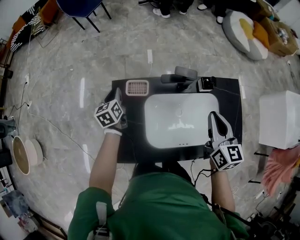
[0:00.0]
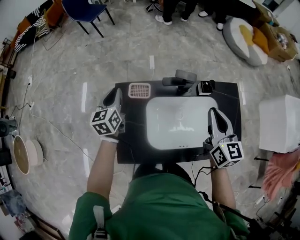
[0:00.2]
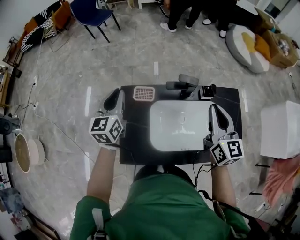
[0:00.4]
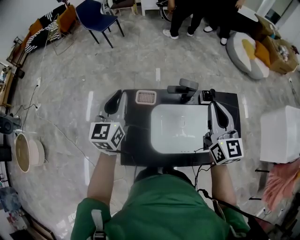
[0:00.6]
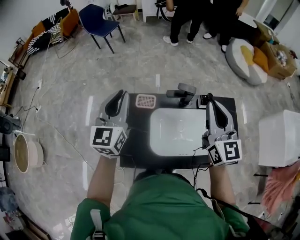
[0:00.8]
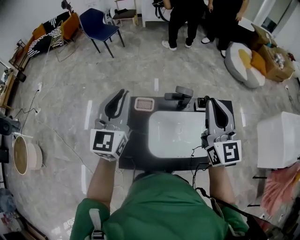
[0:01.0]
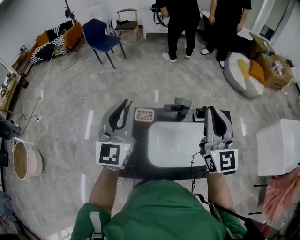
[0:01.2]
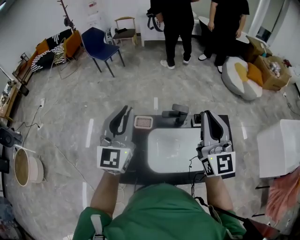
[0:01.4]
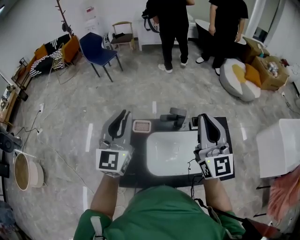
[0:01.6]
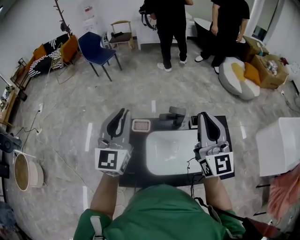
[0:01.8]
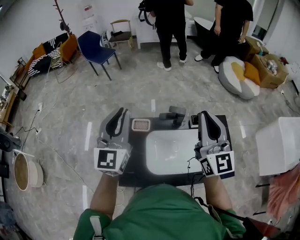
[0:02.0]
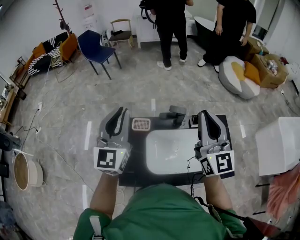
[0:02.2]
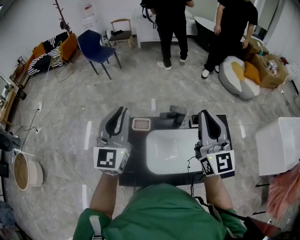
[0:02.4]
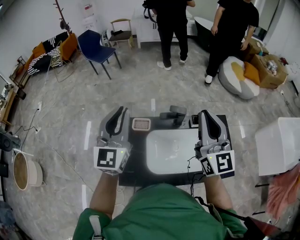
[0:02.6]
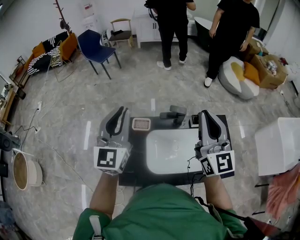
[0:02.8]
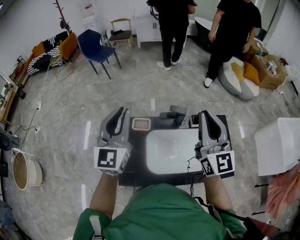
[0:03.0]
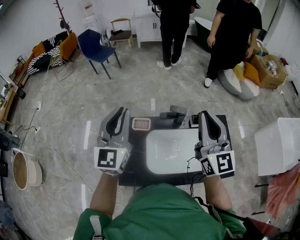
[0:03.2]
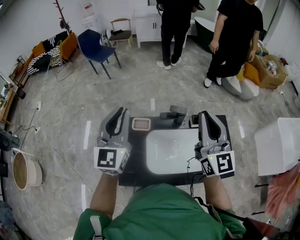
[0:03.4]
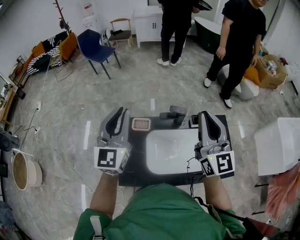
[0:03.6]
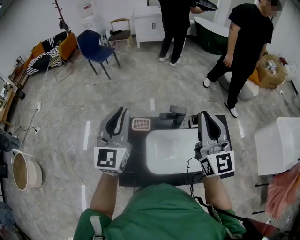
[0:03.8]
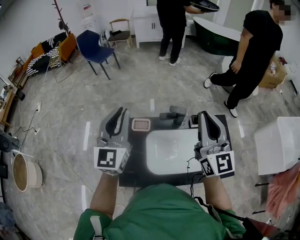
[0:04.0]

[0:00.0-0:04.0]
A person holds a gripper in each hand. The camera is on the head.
0:00.0 to 0:01.4: The left gripper heads upward, covering approximately 40 cm, and points its fingers approximately 40 degrees further upward; the right gripper heads upward, covering some 25 cm, and swivels some 40 degrees.
0:01.4 to 0:02.6: The two grippers keep their place.
0:02.6 to 0:04.0: Neither gripper changes place.

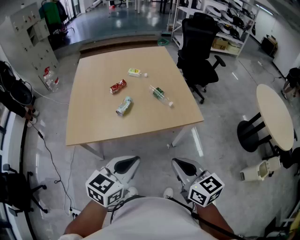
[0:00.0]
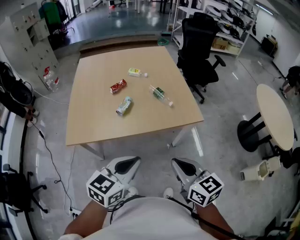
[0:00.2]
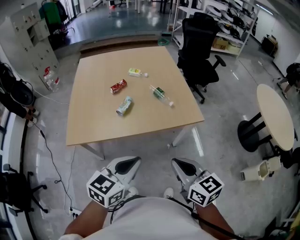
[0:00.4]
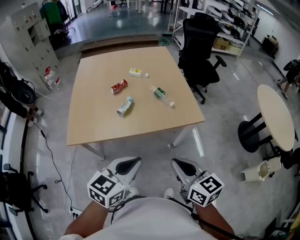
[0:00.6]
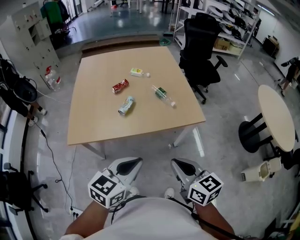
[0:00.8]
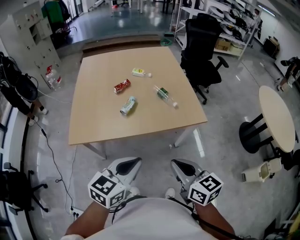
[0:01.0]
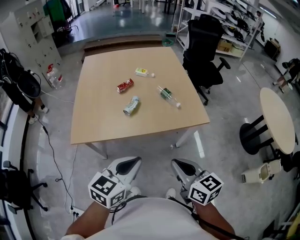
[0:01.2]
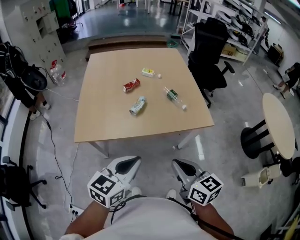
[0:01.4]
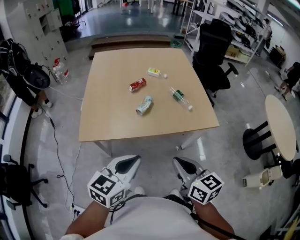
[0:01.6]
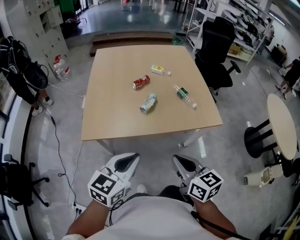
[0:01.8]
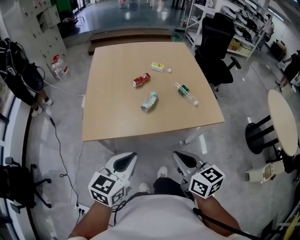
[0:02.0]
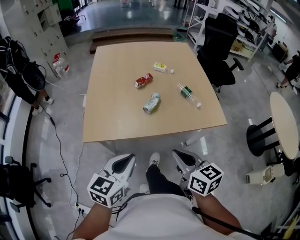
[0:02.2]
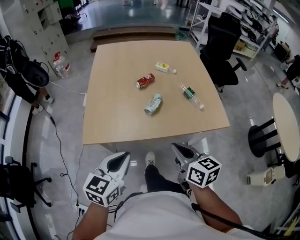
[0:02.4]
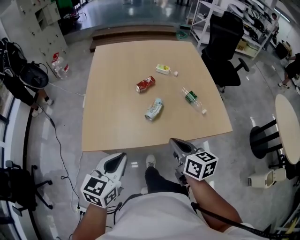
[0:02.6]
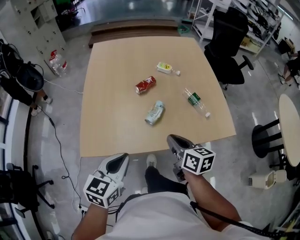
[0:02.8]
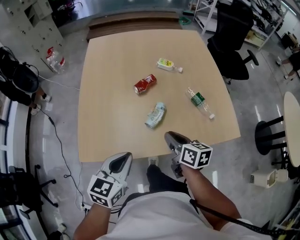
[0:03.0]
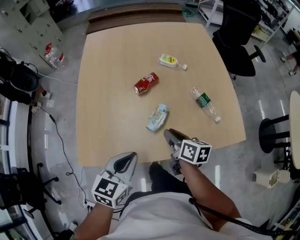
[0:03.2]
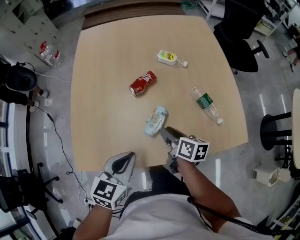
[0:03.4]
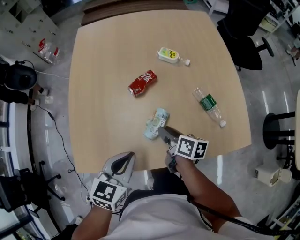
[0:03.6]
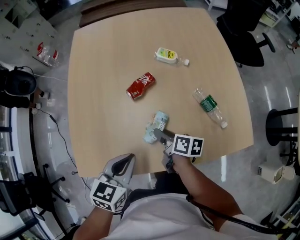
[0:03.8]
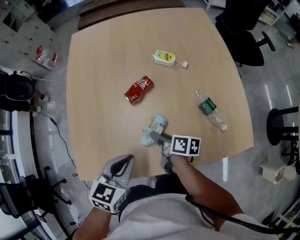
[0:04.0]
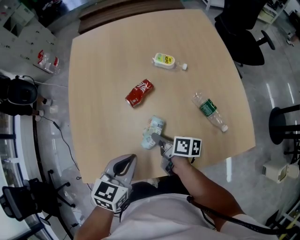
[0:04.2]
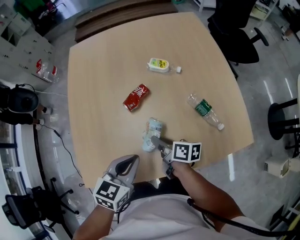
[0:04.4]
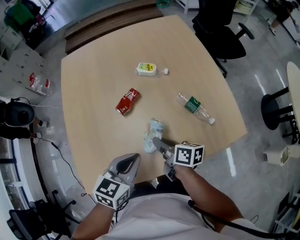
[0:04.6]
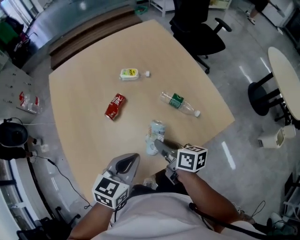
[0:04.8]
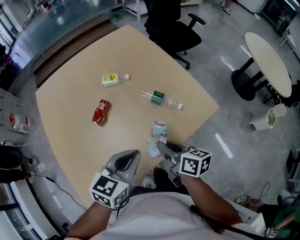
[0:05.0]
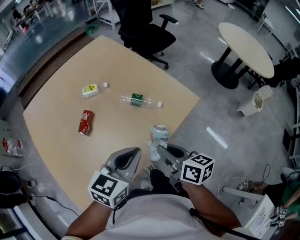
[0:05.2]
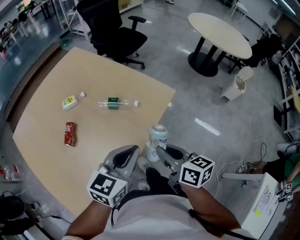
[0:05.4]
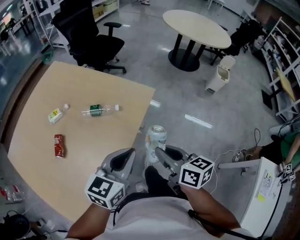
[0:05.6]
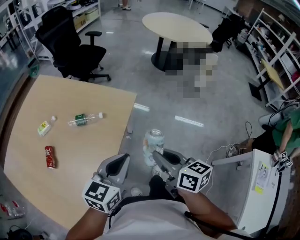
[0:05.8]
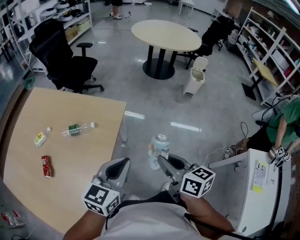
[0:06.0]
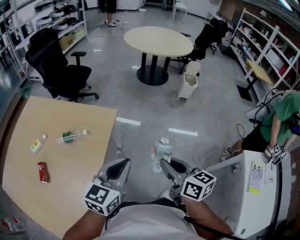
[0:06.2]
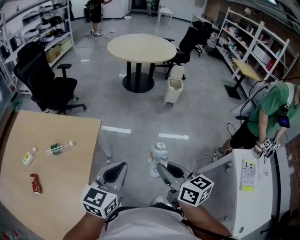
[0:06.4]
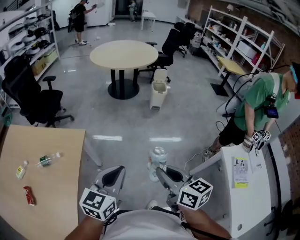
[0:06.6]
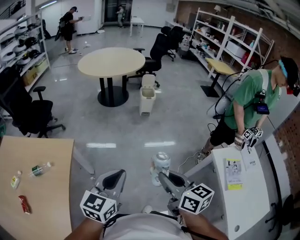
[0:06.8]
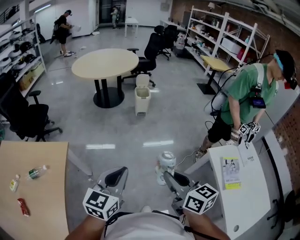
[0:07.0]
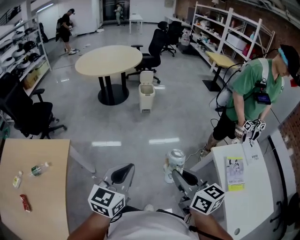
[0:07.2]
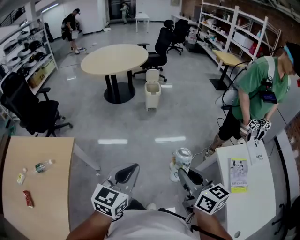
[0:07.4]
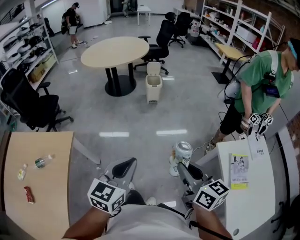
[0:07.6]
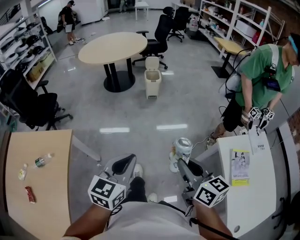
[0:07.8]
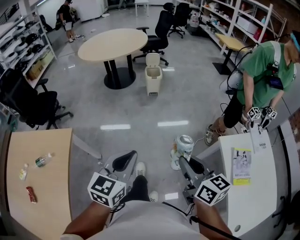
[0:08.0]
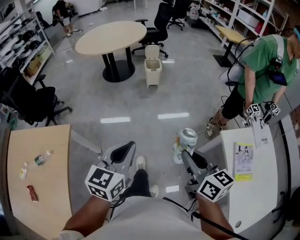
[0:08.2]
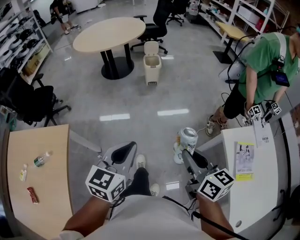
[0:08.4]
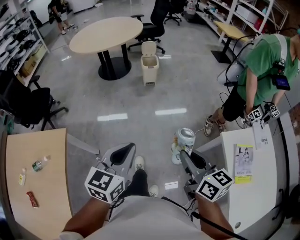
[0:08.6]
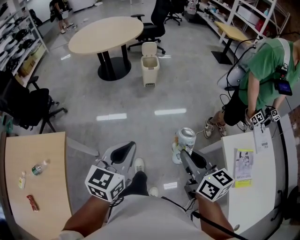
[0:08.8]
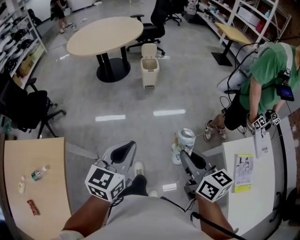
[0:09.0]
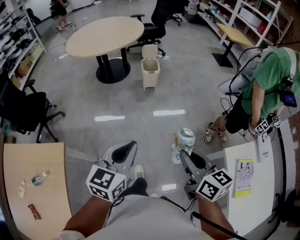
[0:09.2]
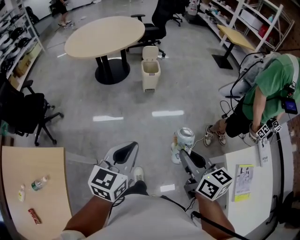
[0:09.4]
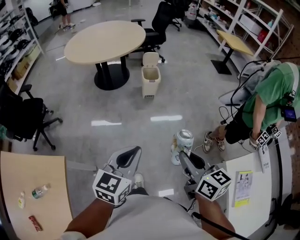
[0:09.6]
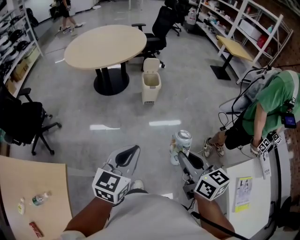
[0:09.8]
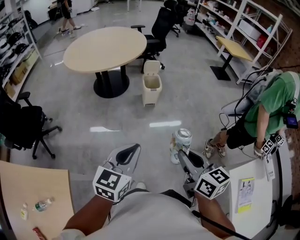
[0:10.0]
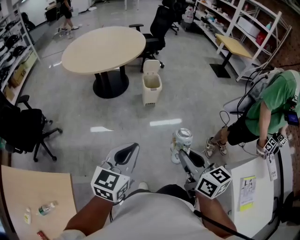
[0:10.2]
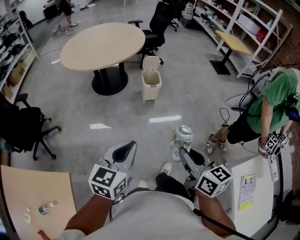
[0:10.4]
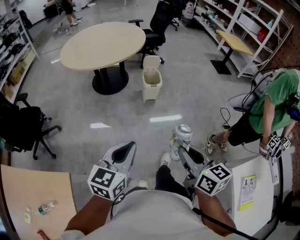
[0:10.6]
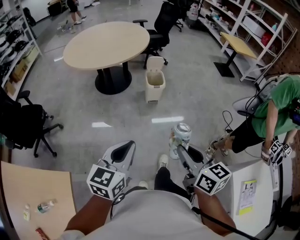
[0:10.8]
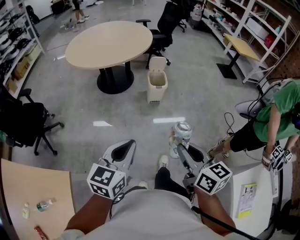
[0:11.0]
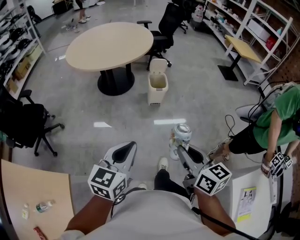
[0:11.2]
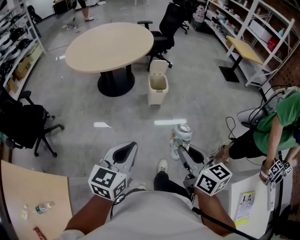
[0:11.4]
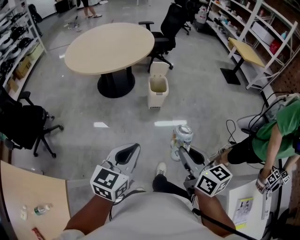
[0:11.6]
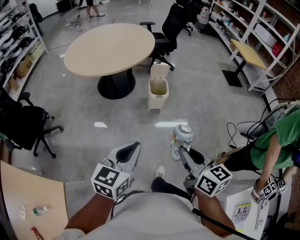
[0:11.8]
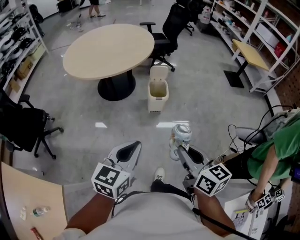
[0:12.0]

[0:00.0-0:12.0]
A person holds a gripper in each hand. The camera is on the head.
0:00.0 to 0:01.6: Both grippers move to the left, about 10 cm.
0:01.6 to 0:03.0: The left gripper is displaced forward, downward and to the left by roughly 20 cm. The right gripper travels forward and downward by approximately 30 cm, and turns by some 20 degrees.
0:03.0 to 0:04.4: The right gripper moves forward and downward, some 10 cm, changes its angle by about 30 degrees, and opens and closes again. The left gripper goes approximately 10 cm forward.
0:04.4 to 0:06.0: The right gripper ends up approximately 50 cm from where it was, and turns by approximately 70 degrees. The left gripper changes place by roughly 30 cm, and rotates about 70 degrees.
0:06.0 to 0:07.6: The two grippers go roughly 35 cm to the right. The right gripper rotates approximately 30 degrees.
0:07.6 to 0:09.0: Both grippers move forward, some 10 cm.
0:09.0 to 0:10.4: Both grippers travel together forward and to the left, roughly 20 cm.
0:10.4 to 0:12.0: The left gripper travels forward and to the right by some 15 cm, while the right gripper moves forward, roughly 15 cm.

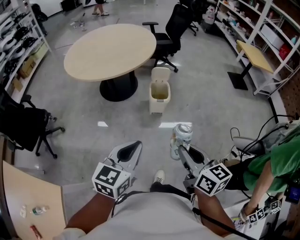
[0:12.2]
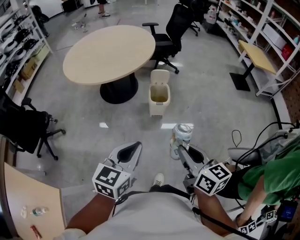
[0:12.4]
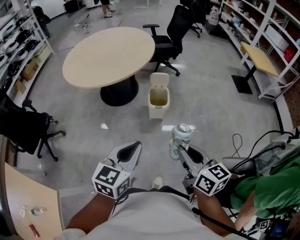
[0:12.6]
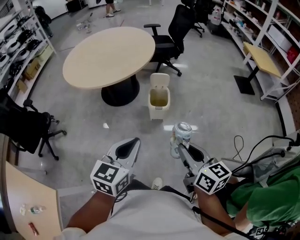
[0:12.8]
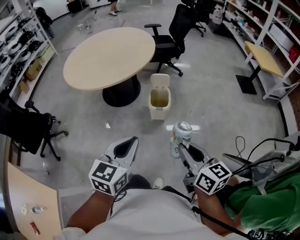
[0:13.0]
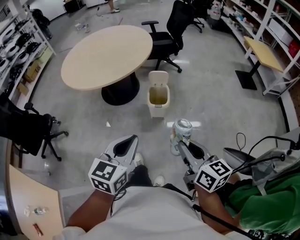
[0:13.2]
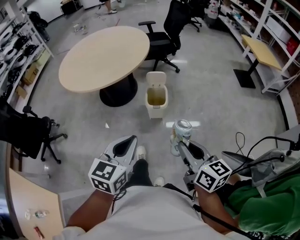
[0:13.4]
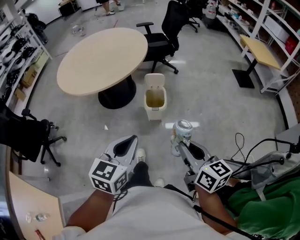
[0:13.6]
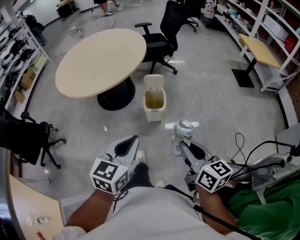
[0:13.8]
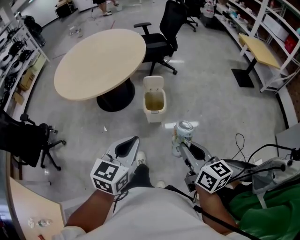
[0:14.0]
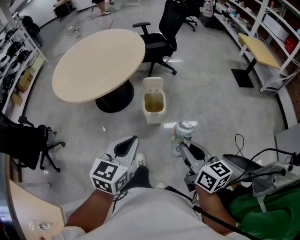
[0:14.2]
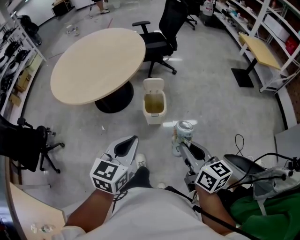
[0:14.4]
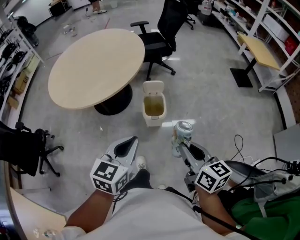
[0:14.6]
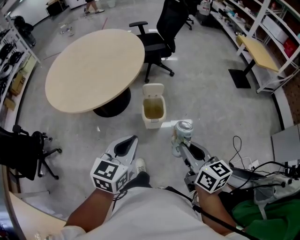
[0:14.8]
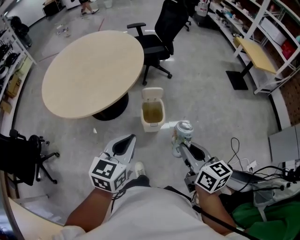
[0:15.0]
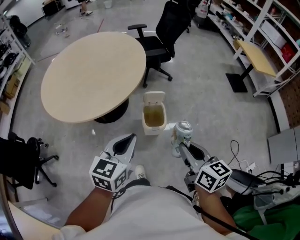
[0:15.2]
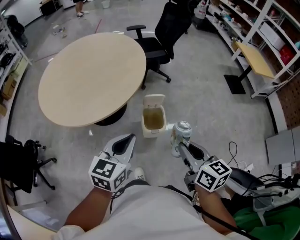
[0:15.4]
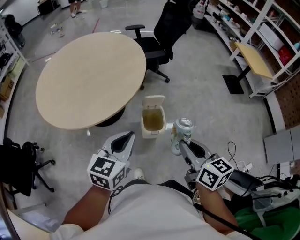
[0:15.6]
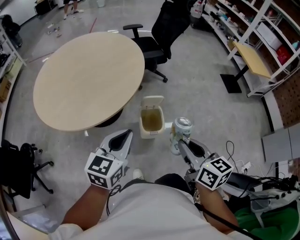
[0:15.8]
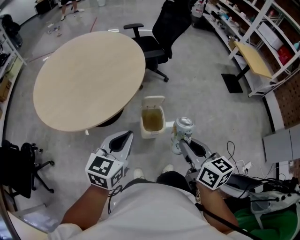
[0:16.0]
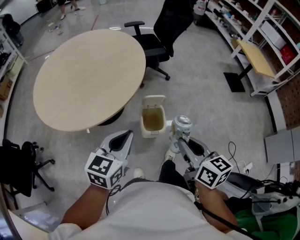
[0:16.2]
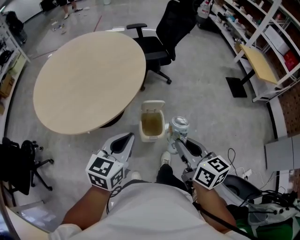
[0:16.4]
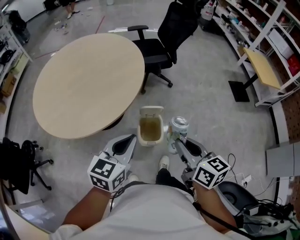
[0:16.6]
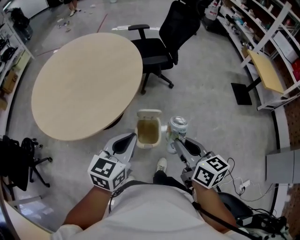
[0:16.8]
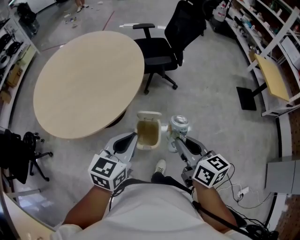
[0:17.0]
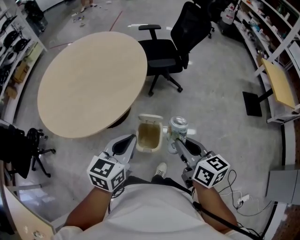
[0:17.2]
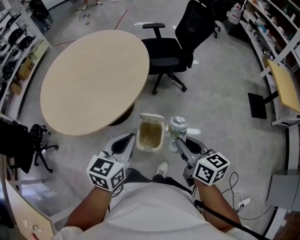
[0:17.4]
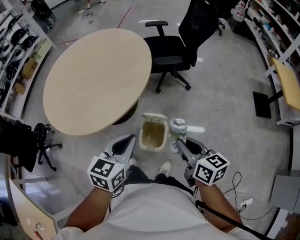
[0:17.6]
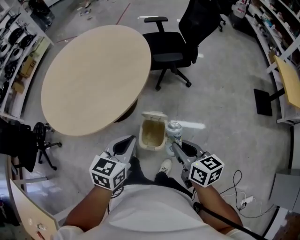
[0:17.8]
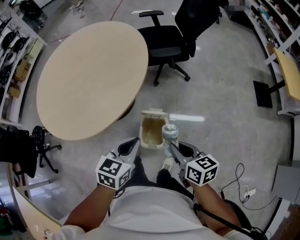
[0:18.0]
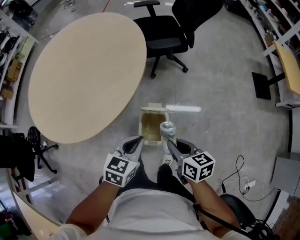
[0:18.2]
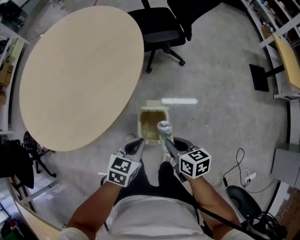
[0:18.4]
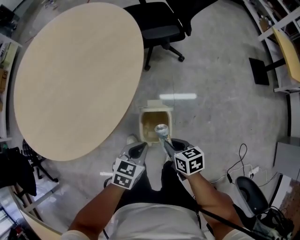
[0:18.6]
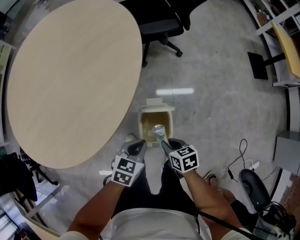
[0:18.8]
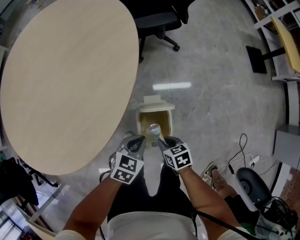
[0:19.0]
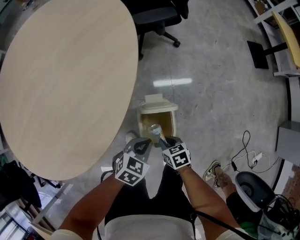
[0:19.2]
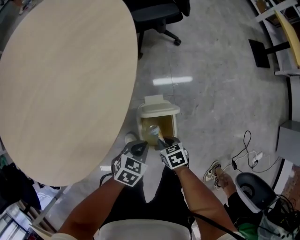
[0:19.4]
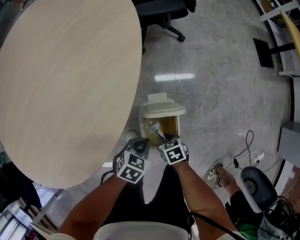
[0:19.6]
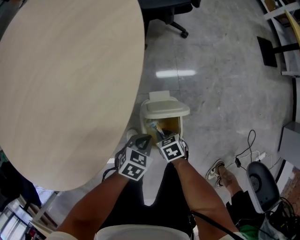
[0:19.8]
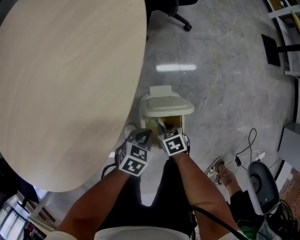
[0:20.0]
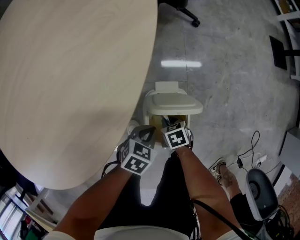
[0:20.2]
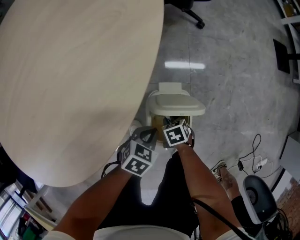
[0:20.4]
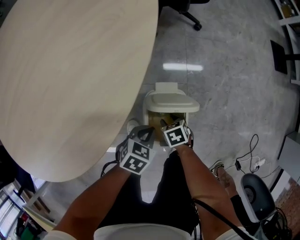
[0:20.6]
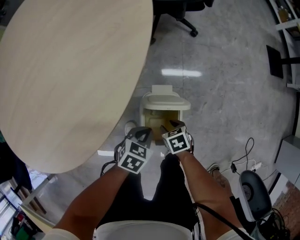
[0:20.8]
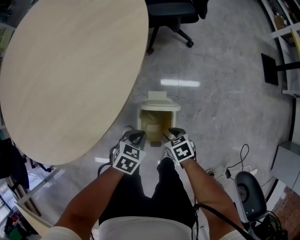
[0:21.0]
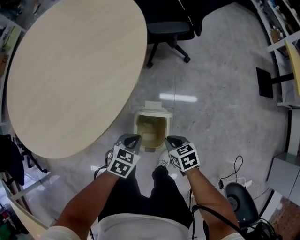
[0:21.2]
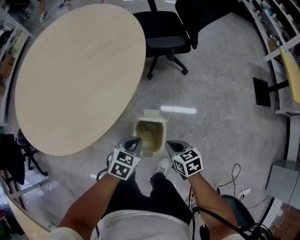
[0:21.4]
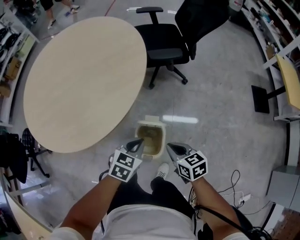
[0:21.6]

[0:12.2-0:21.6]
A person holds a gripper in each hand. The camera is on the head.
0:12.2 to 0:13.8: Both grippers move forward and to the right, roughly 15 cm.
0:13.8 to 0:15.4: Both grippers move forward and to the left, about 20 cm.
0:15.4 to 0:17.0: The right gripper is displaced forward by roughly 20 cm, while the left gripper heads forward and to the right, covering about 15 cm.
0:17.0 to 0:18.4: The grippers both shift downward by approximately 20 cm. The left gripper turns by roughly 20 degrees. Meanwhile the right gripper changes its angle by approximately 20 degrees.
0:18.4 to 0:20.0: The two grippers go some 30 cm downward. The left gripper changes its angle by some 20 degrees. Meanwhile the right gripper turns by some 30 degrees.
0:20.0 to 0:21.6: The two grippers go approximately 25 cm upward. The left gripper swivels approximately 20 degrees. The right gripper changes its angle by some 30 degrees, and opens and closes again.
